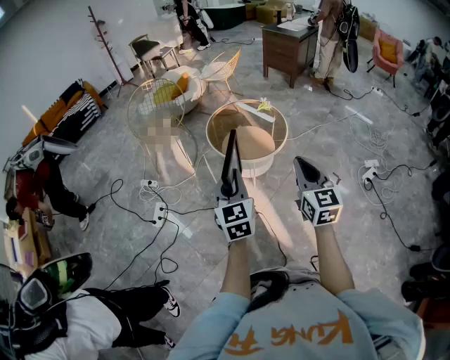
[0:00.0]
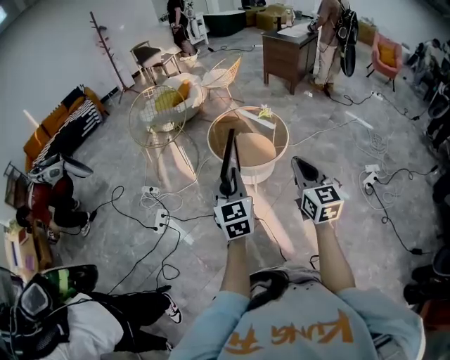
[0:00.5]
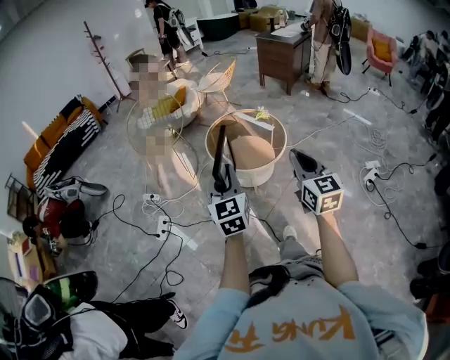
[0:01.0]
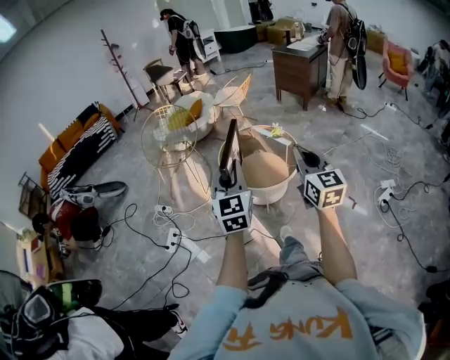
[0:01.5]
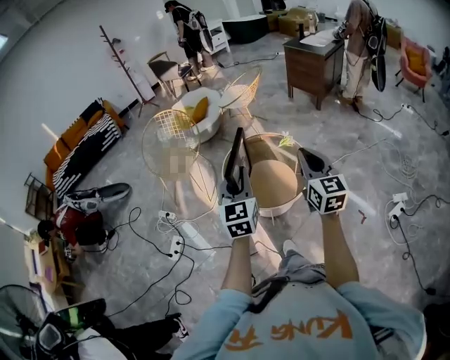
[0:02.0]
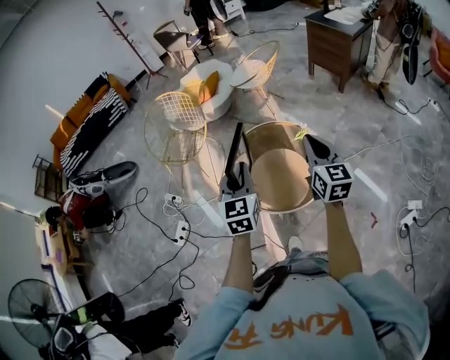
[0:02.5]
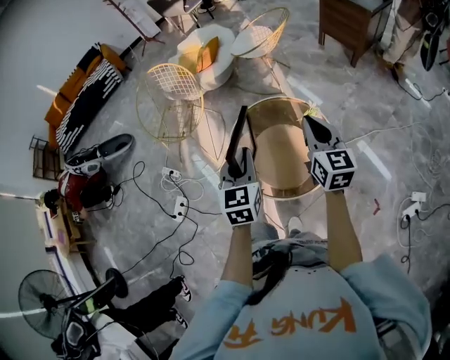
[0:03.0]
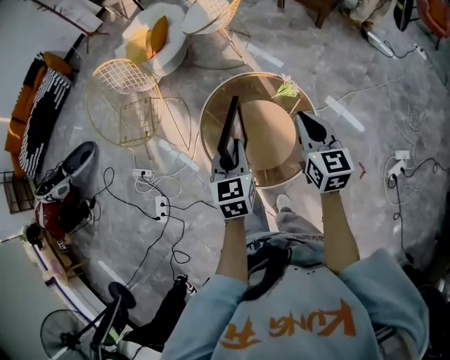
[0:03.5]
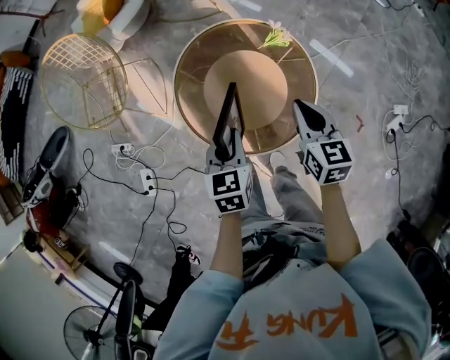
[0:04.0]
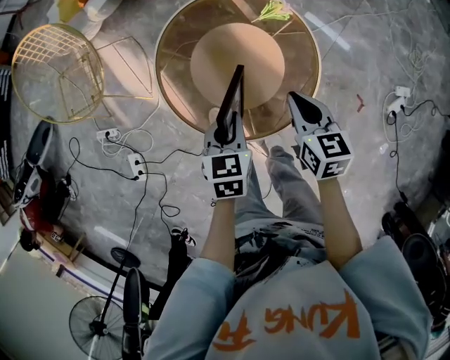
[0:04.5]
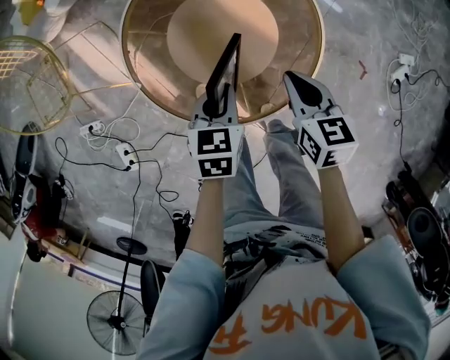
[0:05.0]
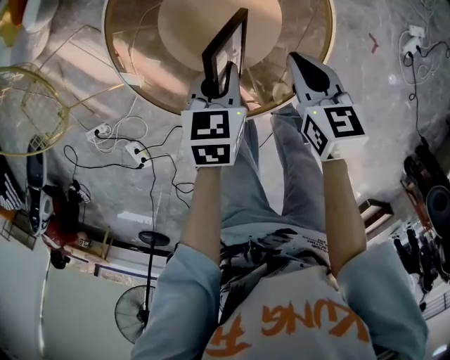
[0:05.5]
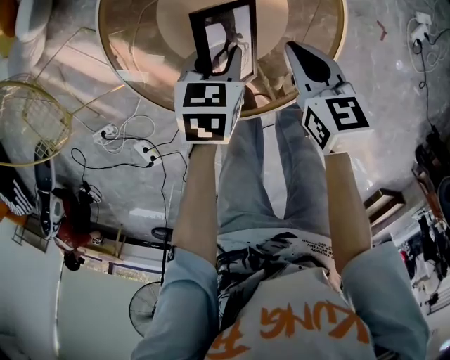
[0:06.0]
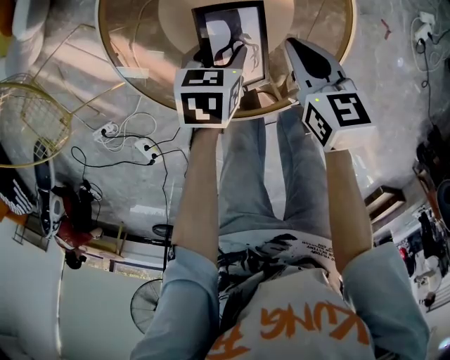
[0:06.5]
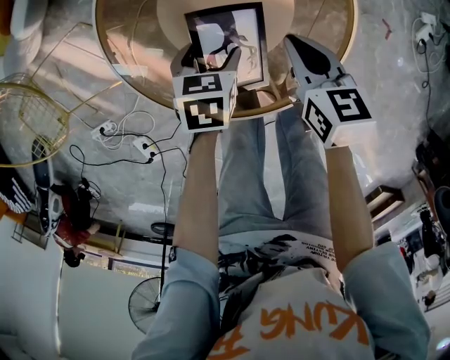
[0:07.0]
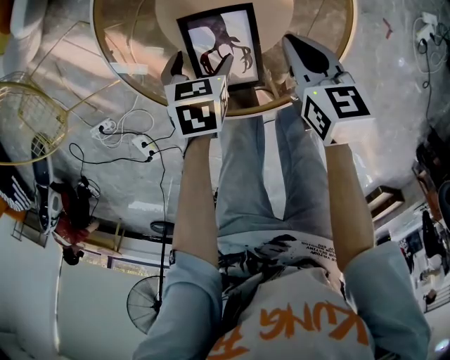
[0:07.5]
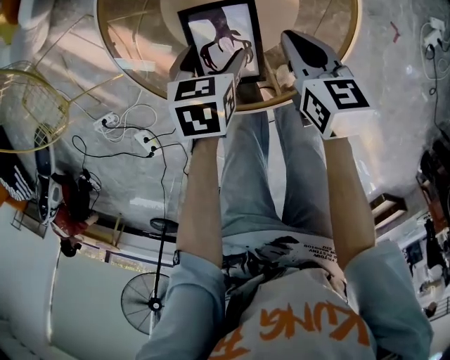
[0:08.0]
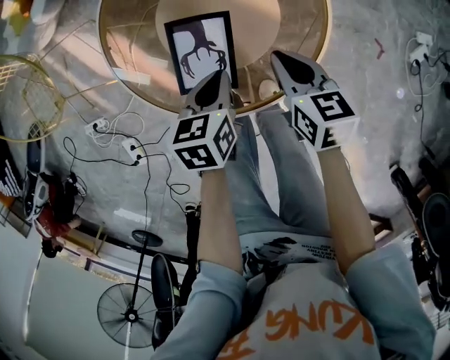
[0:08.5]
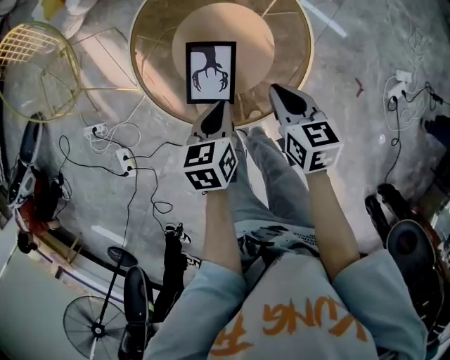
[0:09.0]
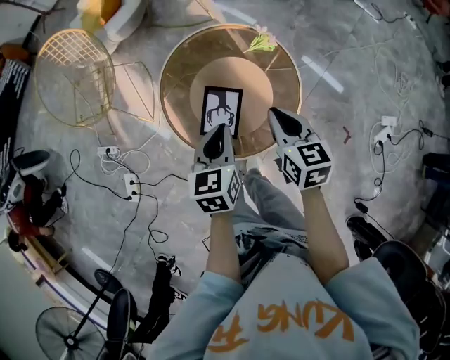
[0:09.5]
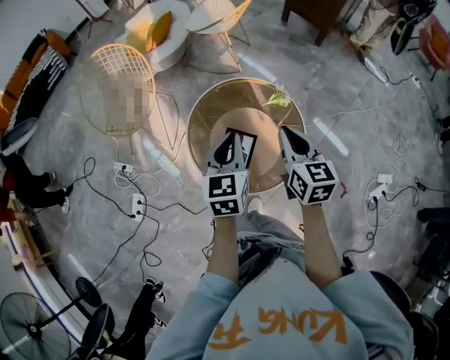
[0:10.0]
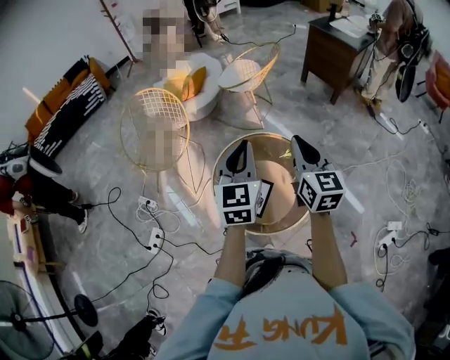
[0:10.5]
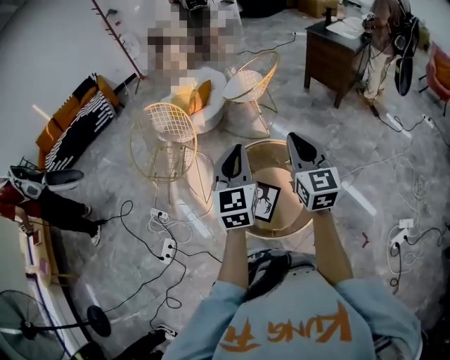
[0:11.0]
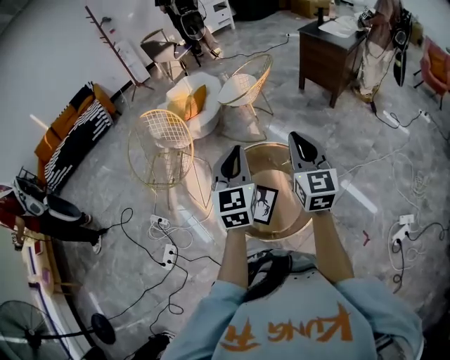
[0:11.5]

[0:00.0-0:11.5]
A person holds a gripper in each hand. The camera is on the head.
0:00.0 to 0:02.0: The grippers both shift forward by roughly 30 cm.
0:02.0 to 0:04.0: Both grippers move downward and forward, some 40 cm. The left gripper angles its fingers downward, by approximately 40 degrees. The right gripper angles its fingers downward, by roughly 30 degrees.
0:04.0 to 0:06.0: The grippers both shift downward by roughly 25 cm. The left gripper changes its angle by about 40 degrees.
0:06.0 to 0:07.5: The left gripper goes roughly 10 cm downward and to the left, and opens its fingers.
0:07.5 to 0:09.5: Both grippers move upward, roughly 30 cm. The left gripper tips its fingers upward by about 30 degrees, and closes. The right gripper turns by about 20 degrees.
0:09.5 to 0:11.5: The grippers both shift upward by approximately 30 cm. The left gripper rotates about 40 degrees, while the right gripper tilts its fingers roughly 30 degrees upward.

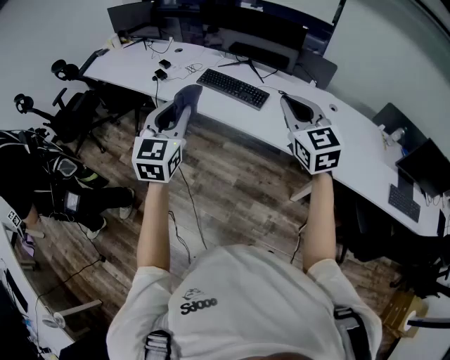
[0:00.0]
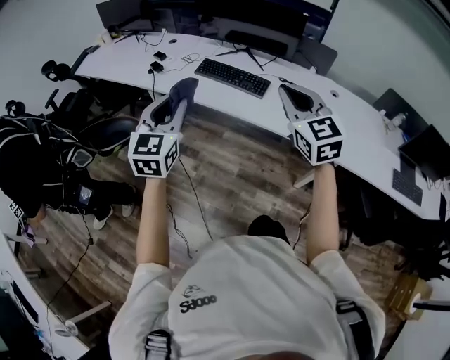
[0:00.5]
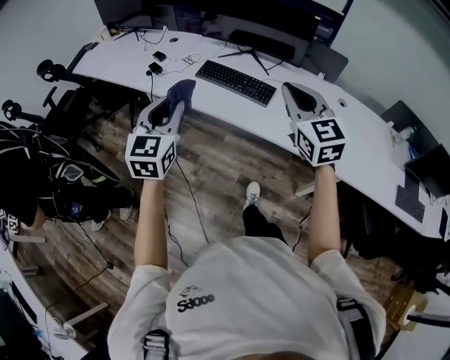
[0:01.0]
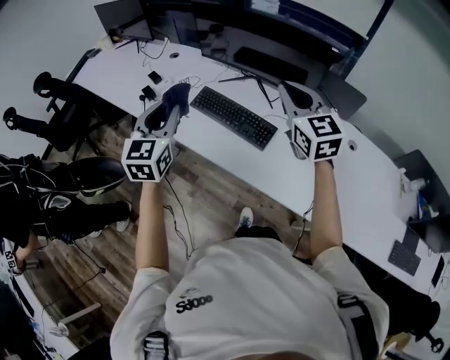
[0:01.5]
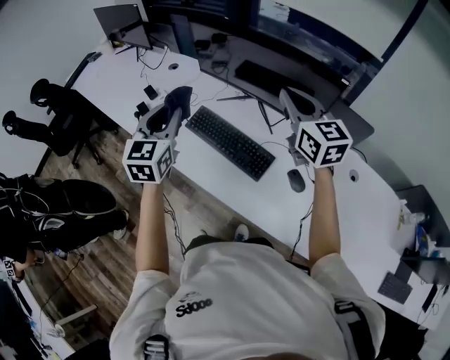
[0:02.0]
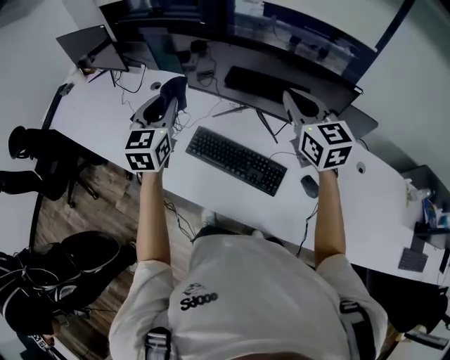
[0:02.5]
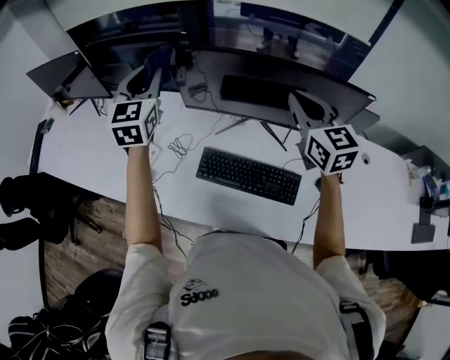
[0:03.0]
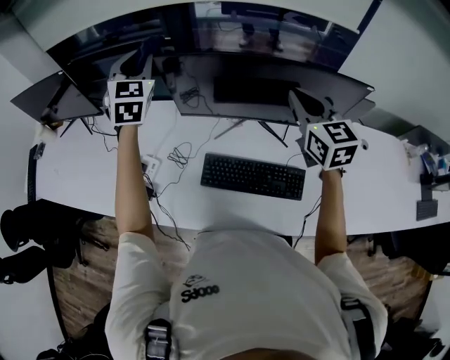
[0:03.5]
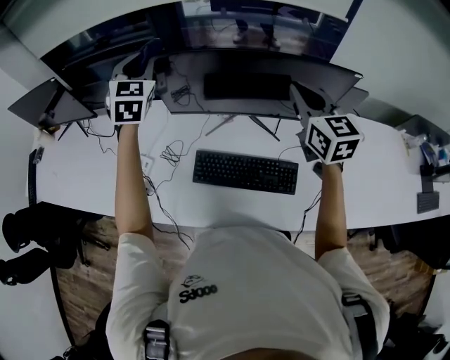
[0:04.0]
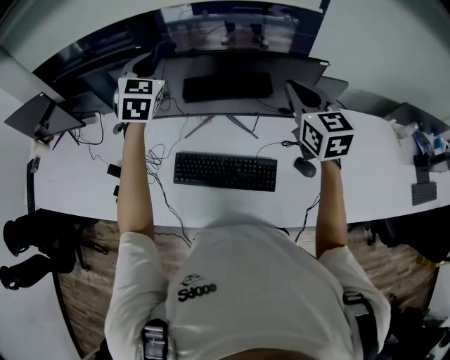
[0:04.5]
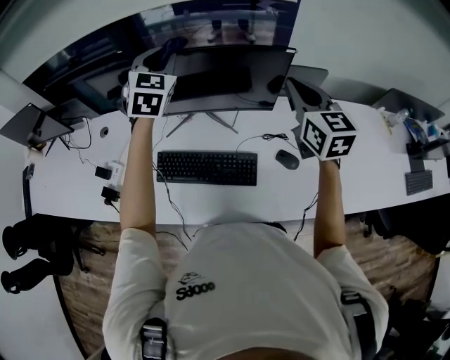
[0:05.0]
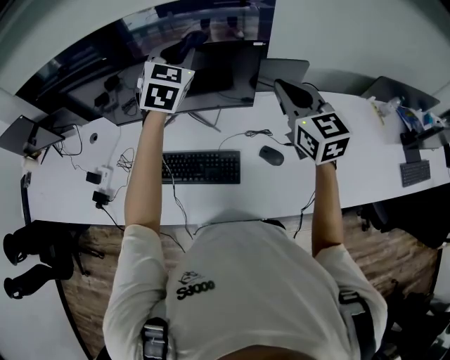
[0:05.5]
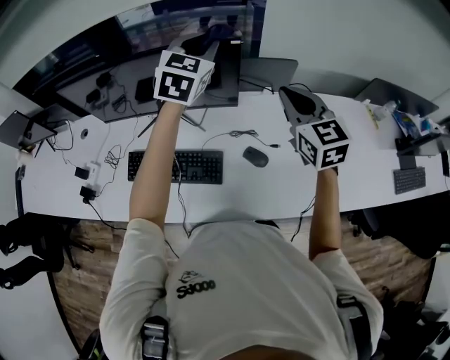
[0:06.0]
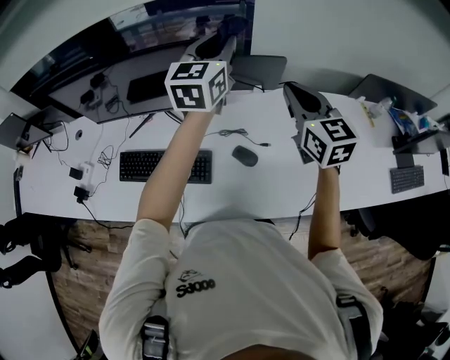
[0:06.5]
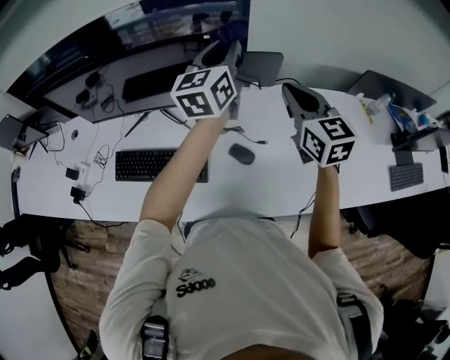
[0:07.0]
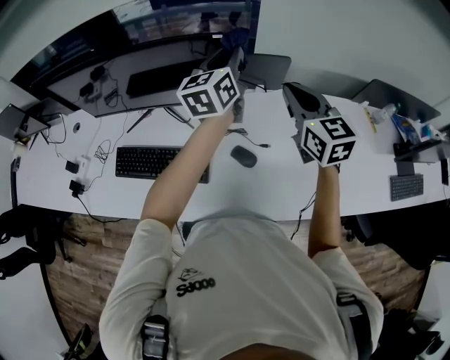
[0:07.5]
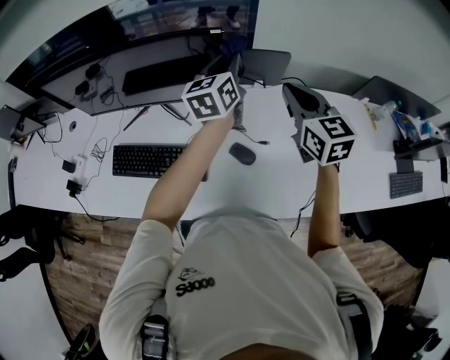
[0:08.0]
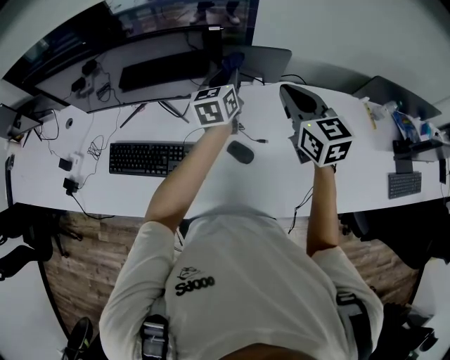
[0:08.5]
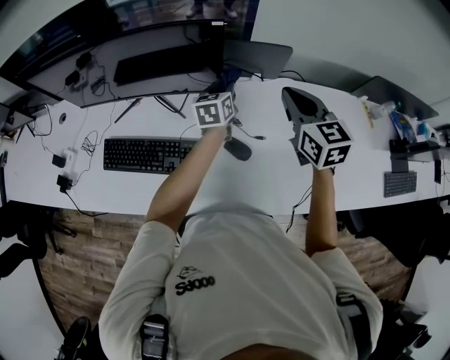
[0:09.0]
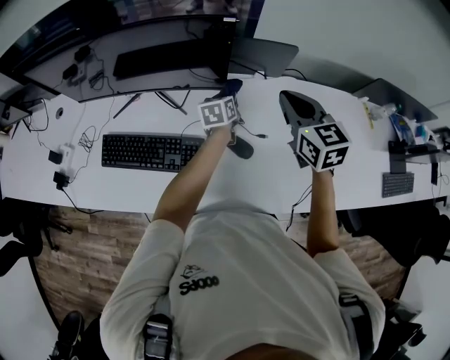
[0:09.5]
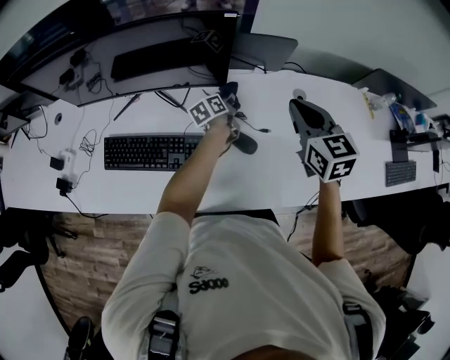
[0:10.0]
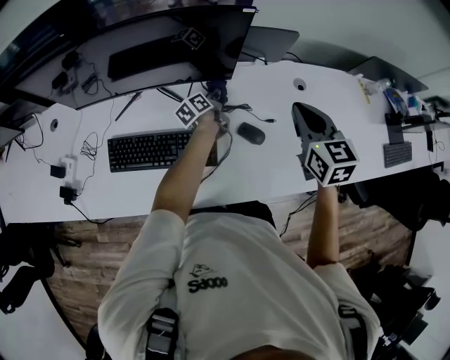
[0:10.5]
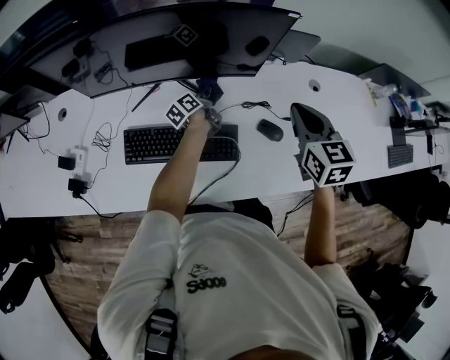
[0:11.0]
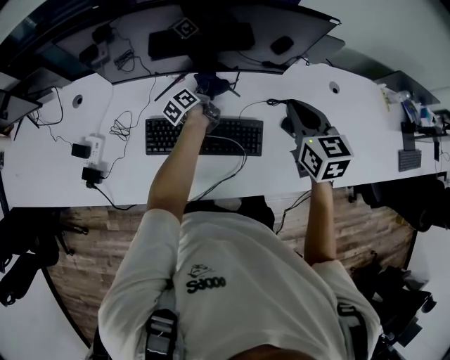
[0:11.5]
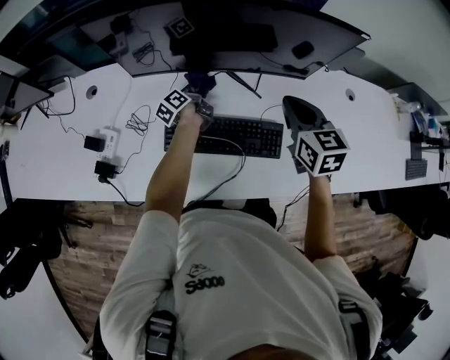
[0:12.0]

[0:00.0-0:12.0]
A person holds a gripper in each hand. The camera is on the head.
0:00.0 to 0:02.0: The two grippers travel together, forward, some 50 cm. The right gripper rotates about 20 degrees.
0:02.0 to 0:04.0: The left gripper ends up some 40 cm from where it was, and swivels approximately 30 degrees, while the right gripper ends up some 15 cm from where it was, and rotates roughly 30 degrees.
0:04.0 to 0:06.0: The right gripper shifts roughly 30 cm to the right, while the left gripper is displaced to the right by roughly 50 cm, and changes its angle by about 20 degrees.
0:06.0 to 0:08.0: The left gripper heads downward and to the right, covering approximately 15 cm, and twists some 40 degrees counterclockwise, seen from behind. Meanwhile the right gripper moves to the right, about 5 cm.
0:08.0 to 0:10.0: The left gripper heads downward, covering some 30 cm, and changes its angle by approximately 40 degrees, while the right gripper is displaced downward by roughly 5 cm.
0:10.0 to 0:12.0: Both grippers move to the left, about 35 cm. The left gripper changes its angle by some 20 degrees.

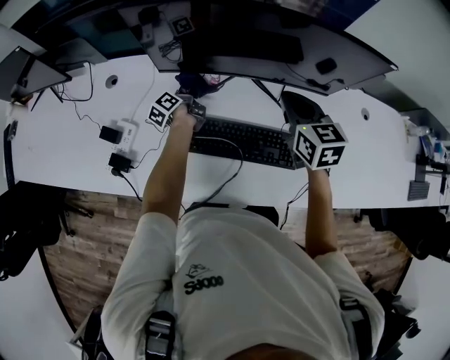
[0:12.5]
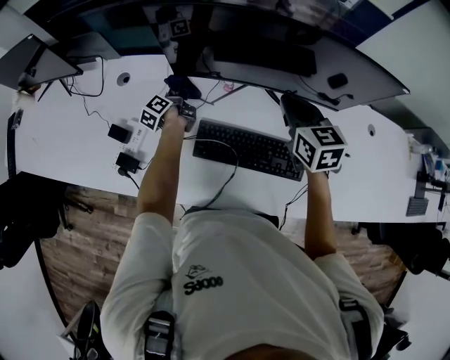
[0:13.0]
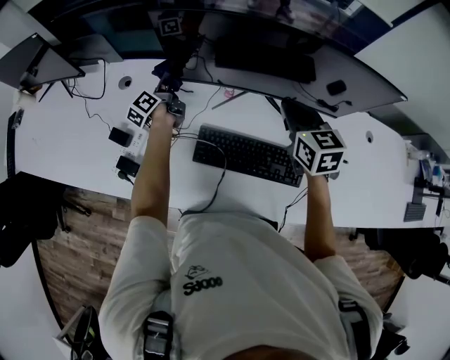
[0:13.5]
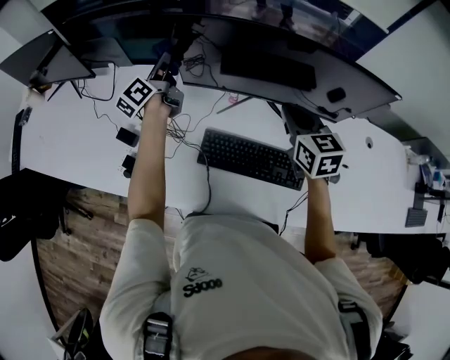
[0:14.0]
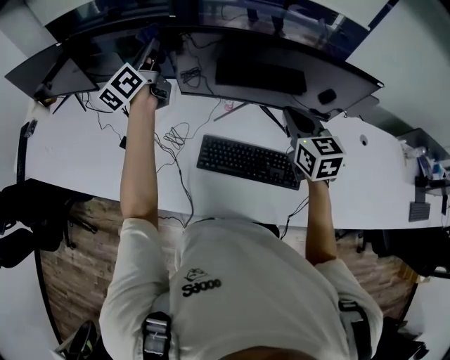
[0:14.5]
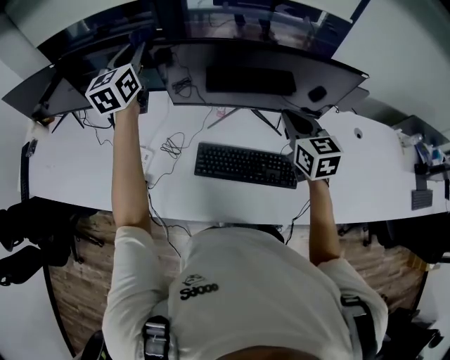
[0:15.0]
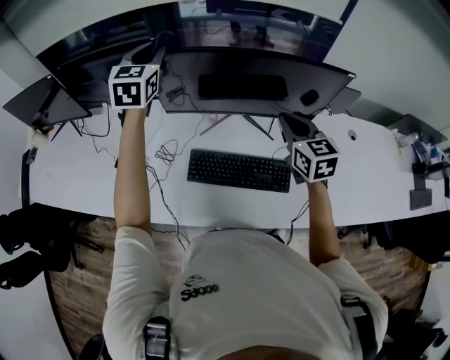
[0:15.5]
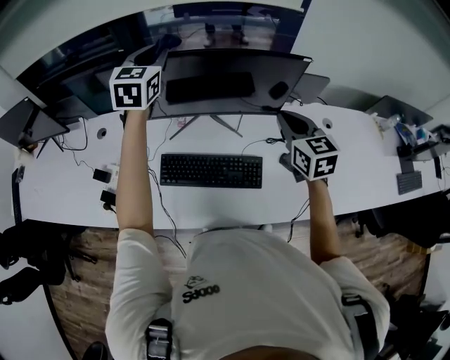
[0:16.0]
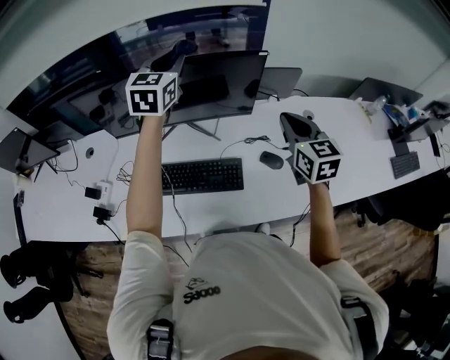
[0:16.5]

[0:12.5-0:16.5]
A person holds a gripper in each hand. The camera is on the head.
0:12.5 to 0:14.5: The left gripper is displaced upward by approximately 35 cm, and swivels some 50 degrees, while the right gripper heads upward, covering roughly 5 cm.
0:14.5 to 0:16.5: The two grippers go about 35 cm to the right. The left gripper rotates around the line of its fingers by some 40 degrees, clockwise from behind.
